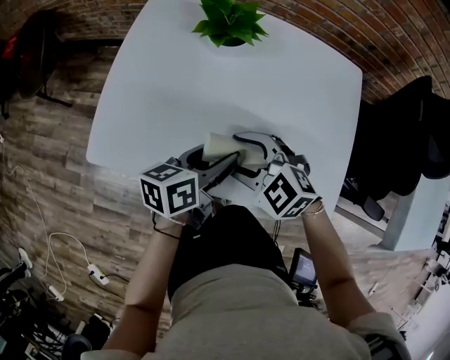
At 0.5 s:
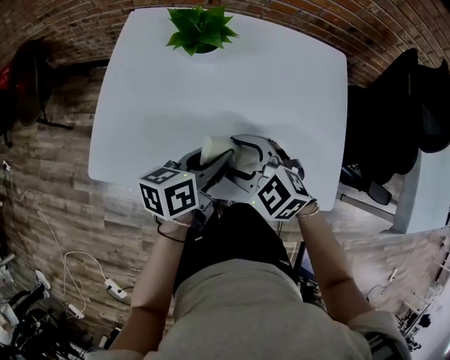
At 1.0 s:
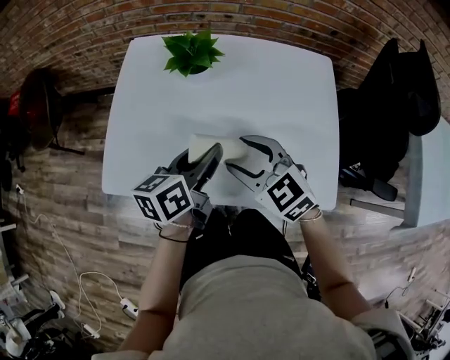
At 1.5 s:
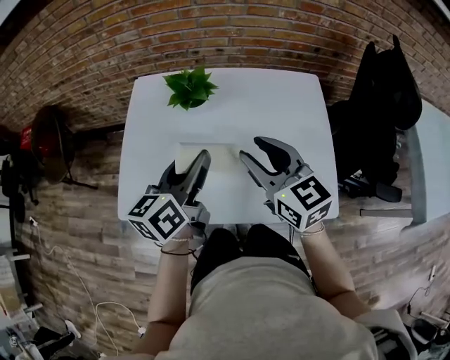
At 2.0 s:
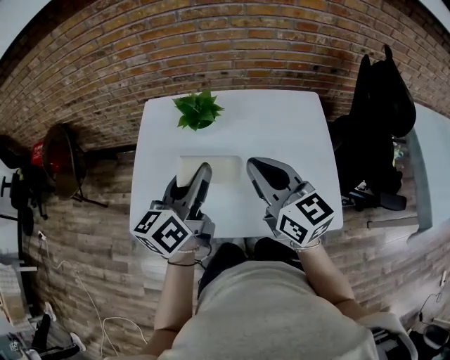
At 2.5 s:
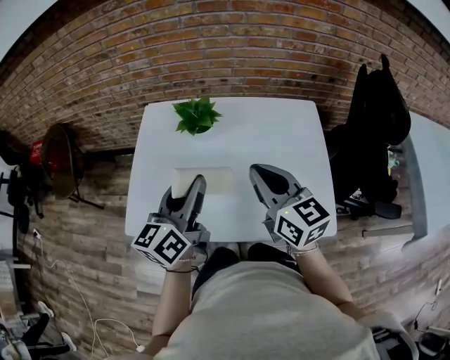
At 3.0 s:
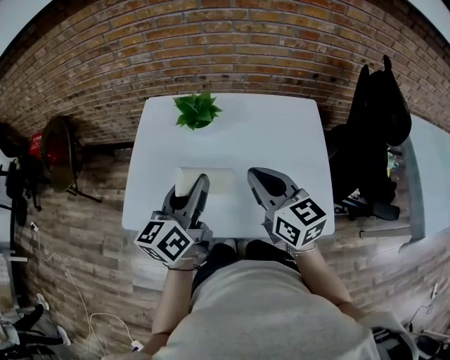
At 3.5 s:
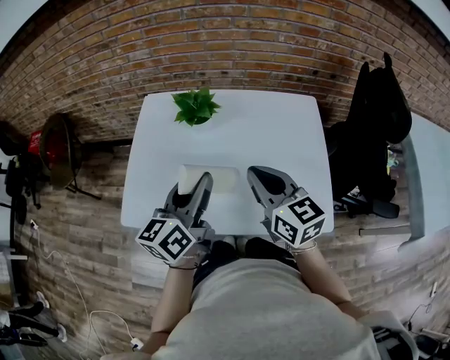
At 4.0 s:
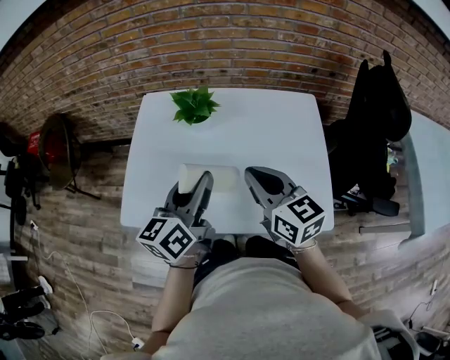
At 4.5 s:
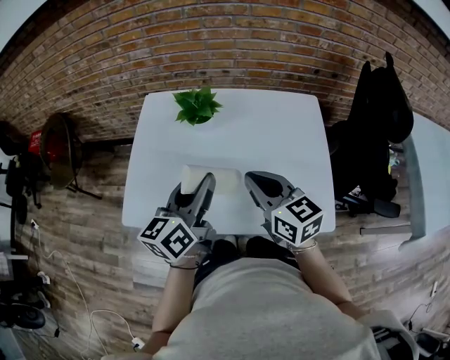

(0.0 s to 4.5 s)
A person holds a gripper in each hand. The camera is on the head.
0.0 s - 2.0 s: Both grippers travel together upward, some 20 cm. The left gripper rotates approximately 30 degrees, and closes up. The right gripper tilts its fingers approximately 40 degrees upward, and closes its fingers.
2.0 s - 4.5 s: The right gripper shifts about 5 cm downward.

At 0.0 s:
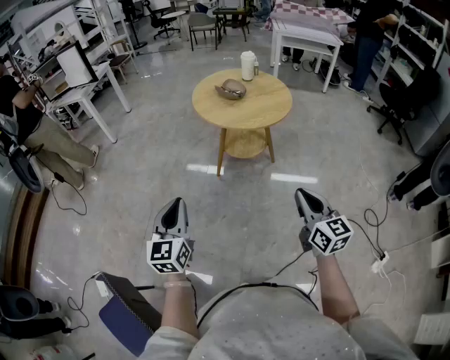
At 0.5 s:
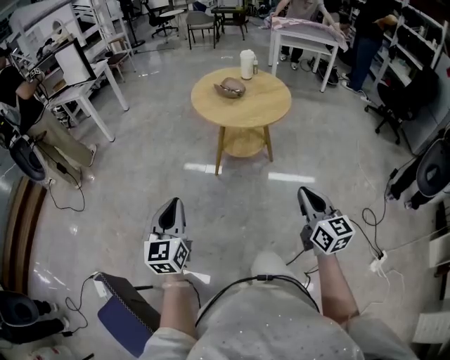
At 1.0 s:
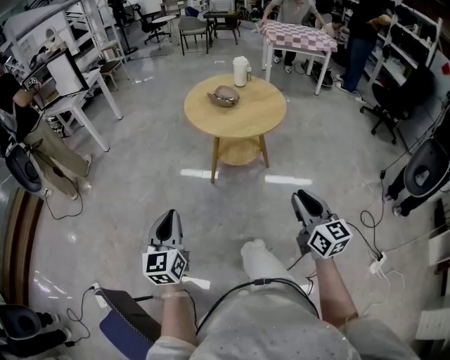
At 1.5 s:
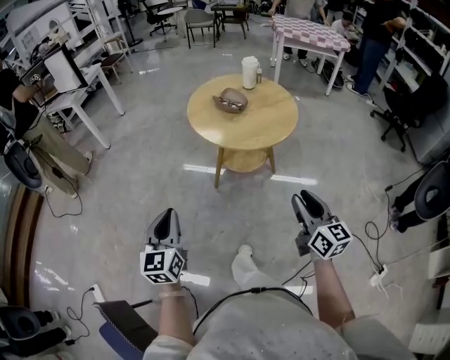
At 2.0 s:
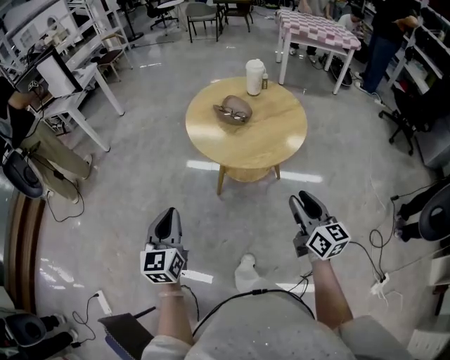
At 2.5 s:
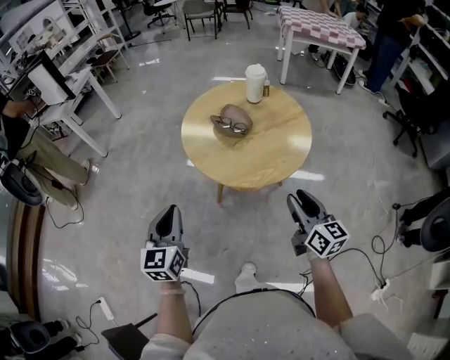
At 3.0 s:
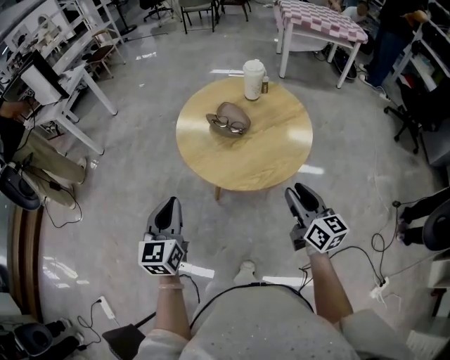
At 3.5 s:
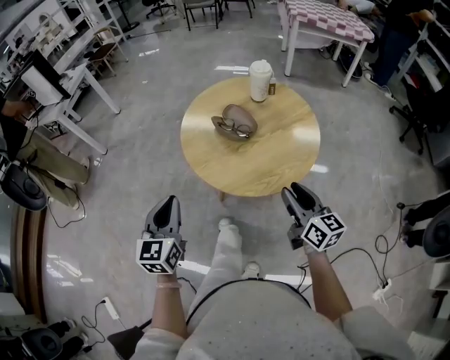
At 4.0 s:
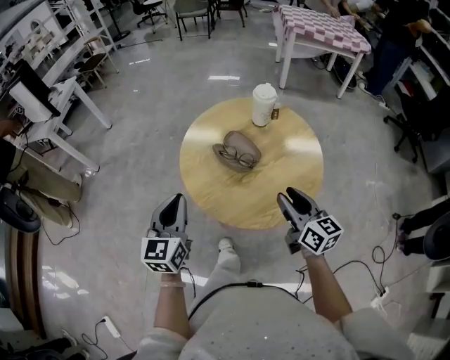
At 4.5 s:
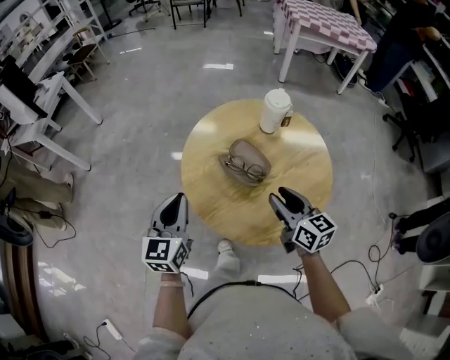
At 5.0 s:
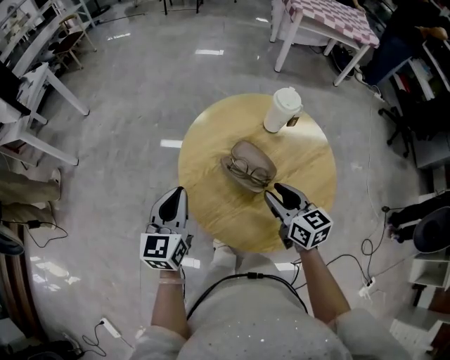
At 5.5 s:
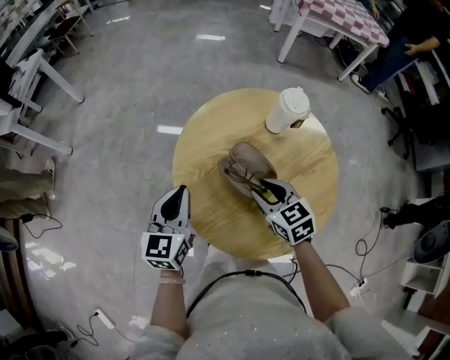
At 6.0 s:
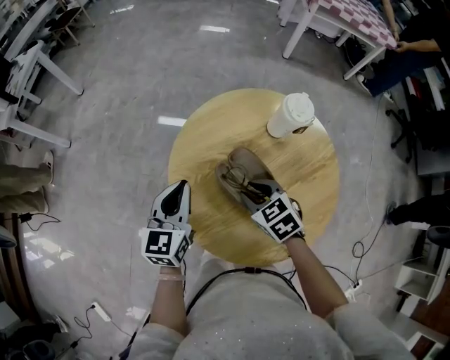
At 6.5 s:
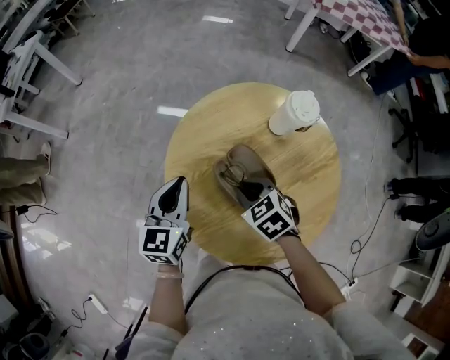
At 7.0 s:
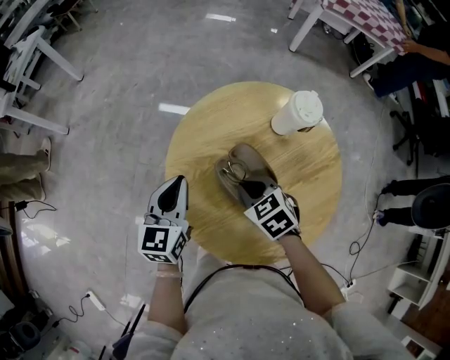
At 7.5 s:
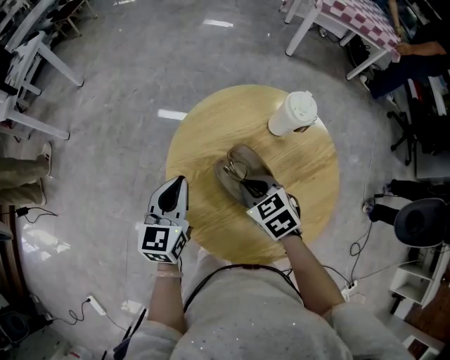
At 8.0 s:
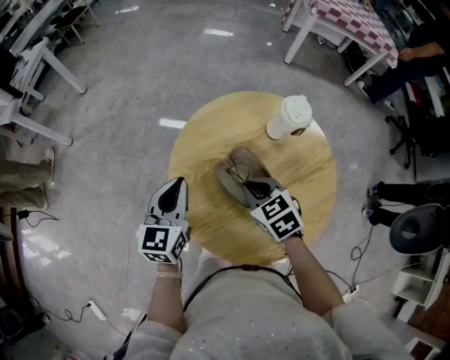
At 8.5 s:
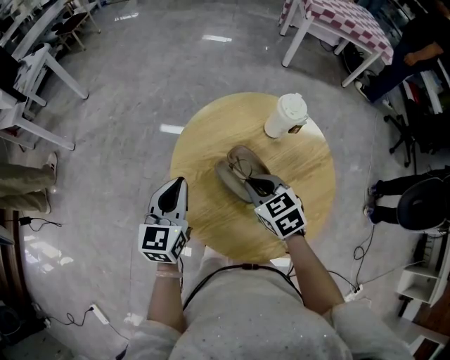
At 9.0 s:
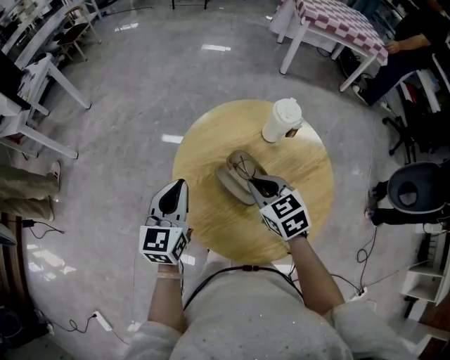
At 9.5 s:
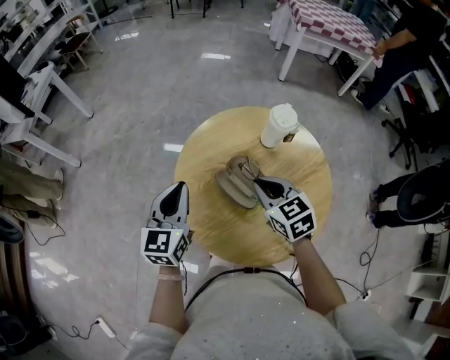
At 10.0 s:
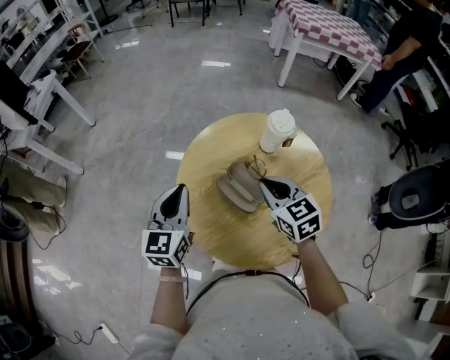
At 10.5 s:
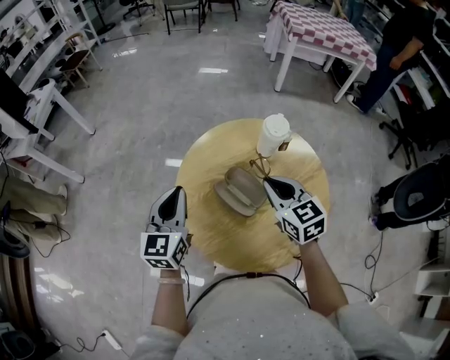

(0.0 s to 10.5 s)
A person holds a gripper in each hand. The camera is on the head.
0.0 s - 2.0 s: The two grippers go about 25 cm forward. The right gripper opens up.
2.0 s - 4.0 s: Both grippers travel together forward, roughly 25 cm.
4.0 s - 6.5 s: The right gripper shifts some 25 cm forward, downward and to the left, tilts its fingers roughly 50 degrees downward, and closes its fingers; the left gripper shifts roughly 20 cm forward and downward.
6.5 s - 8.5 s: The right gripper heads upward, covering roughly 5 cm.
8.5 s - 10.5 s: The right gripper travels upward and to the right by about 10 cm, and rotates about 20 degrees. Meanwhile the left gripper is displaced upward by about 5 cm.

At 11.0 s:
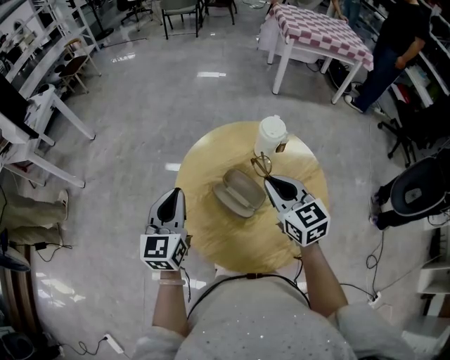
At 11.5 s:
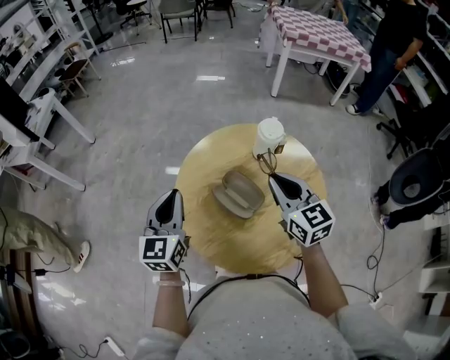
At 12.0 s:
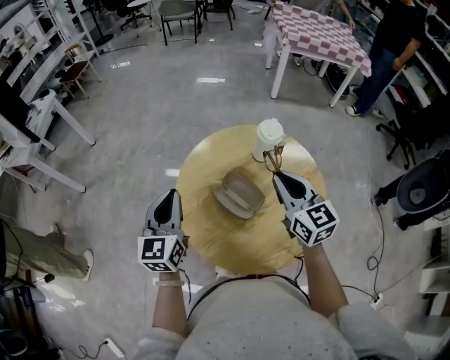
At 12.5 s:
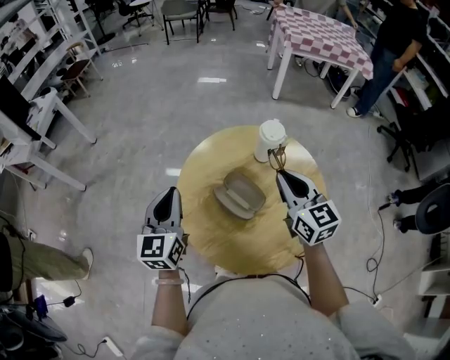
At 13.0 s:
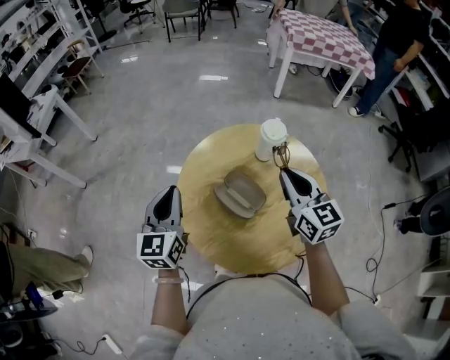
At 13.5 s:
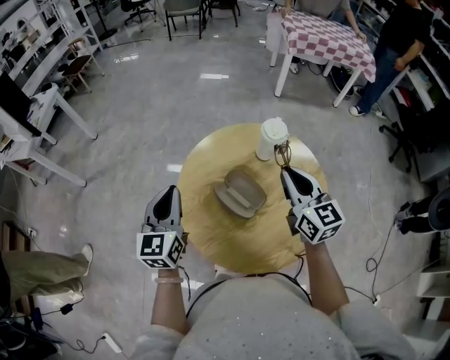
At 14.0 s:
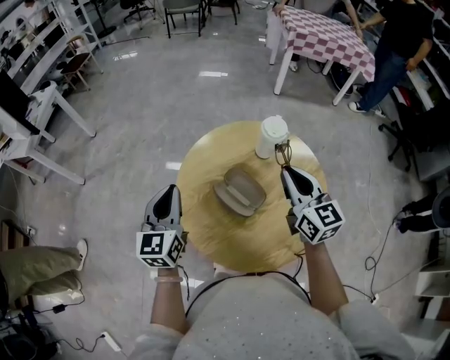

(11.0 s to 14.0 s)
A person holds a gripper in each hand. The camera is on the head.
11.0 s - 12.5 s: The grippers stay close to where they were, moving slightly.
12.5 s - 14.0 s: The grippers move only a little.

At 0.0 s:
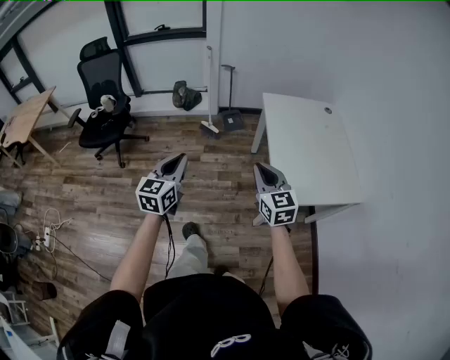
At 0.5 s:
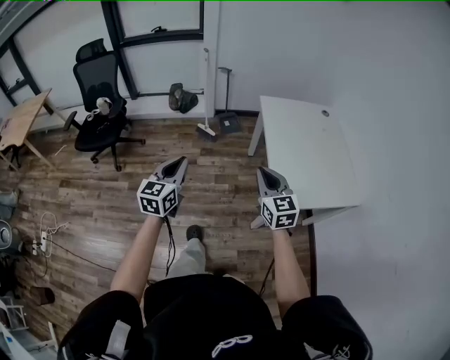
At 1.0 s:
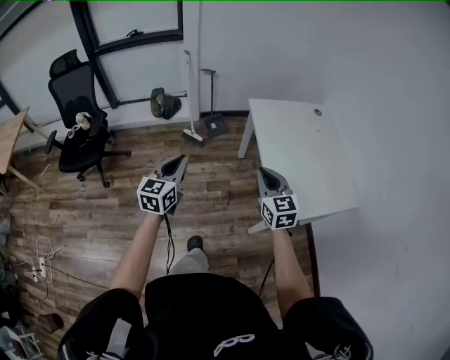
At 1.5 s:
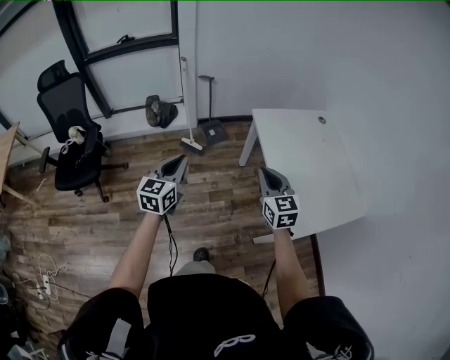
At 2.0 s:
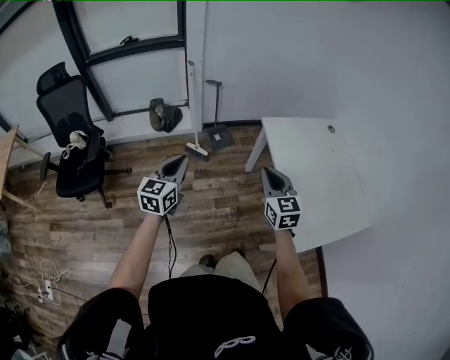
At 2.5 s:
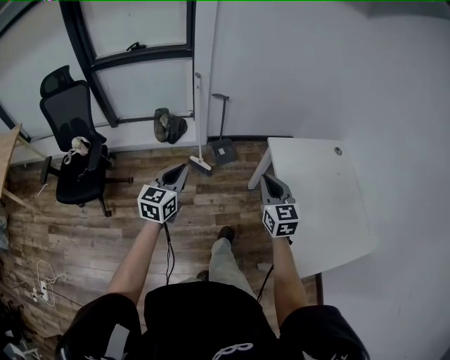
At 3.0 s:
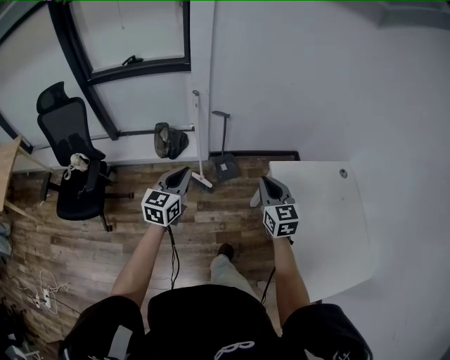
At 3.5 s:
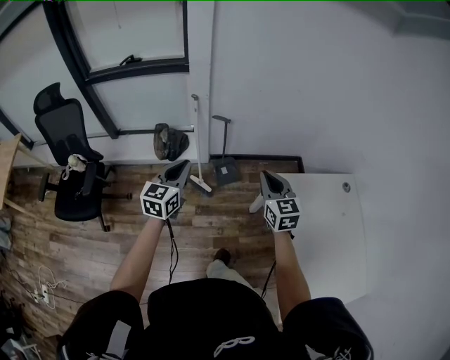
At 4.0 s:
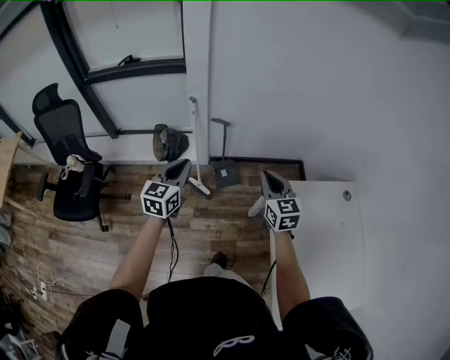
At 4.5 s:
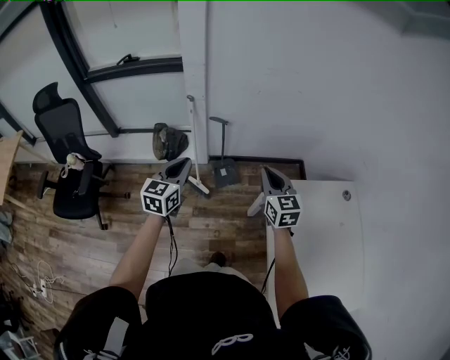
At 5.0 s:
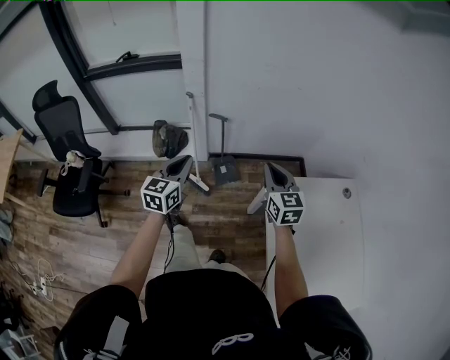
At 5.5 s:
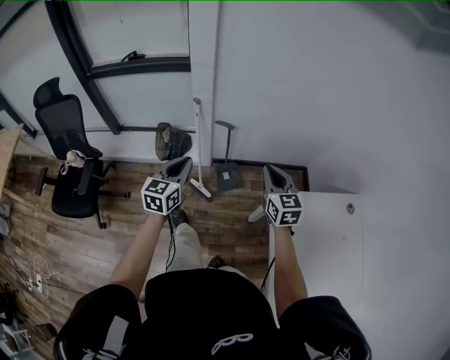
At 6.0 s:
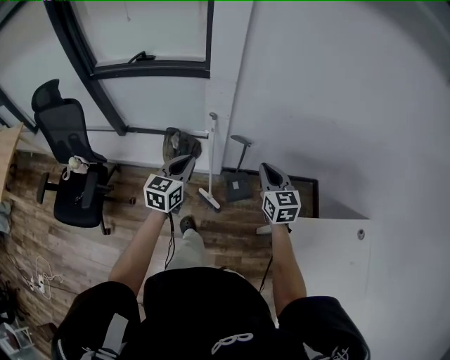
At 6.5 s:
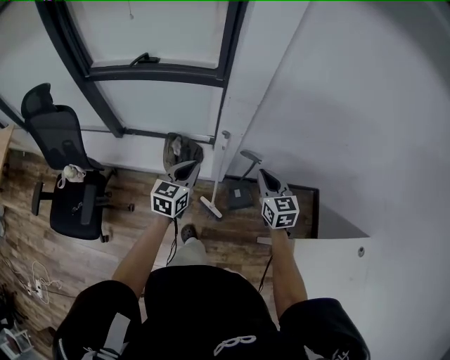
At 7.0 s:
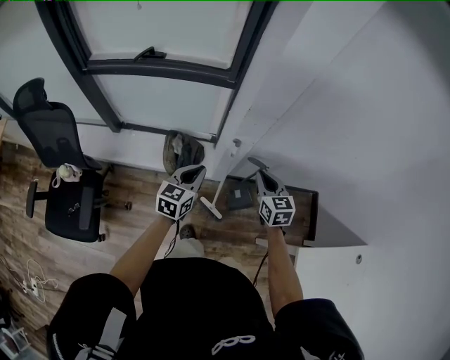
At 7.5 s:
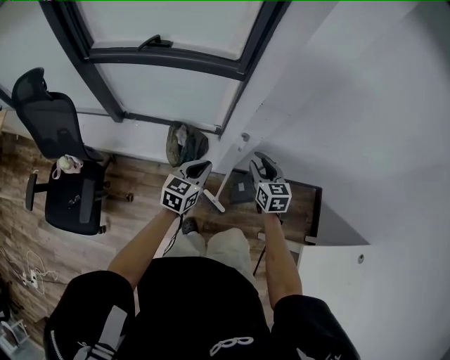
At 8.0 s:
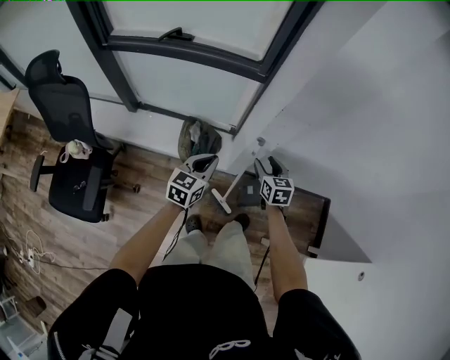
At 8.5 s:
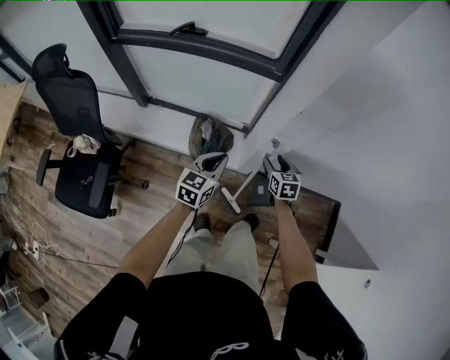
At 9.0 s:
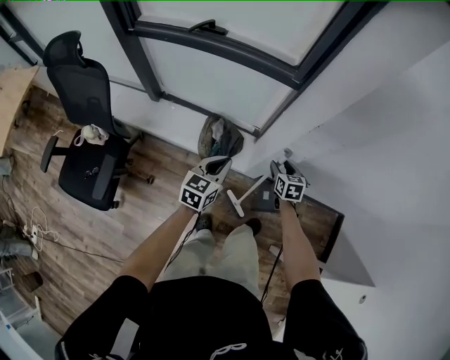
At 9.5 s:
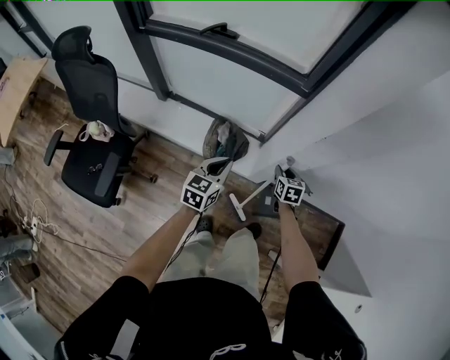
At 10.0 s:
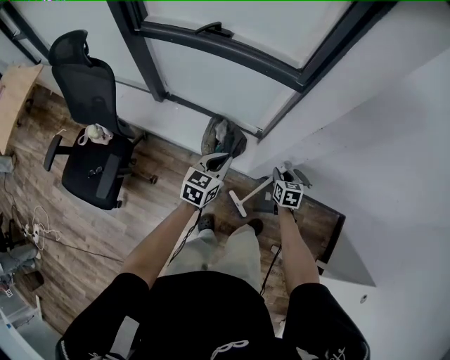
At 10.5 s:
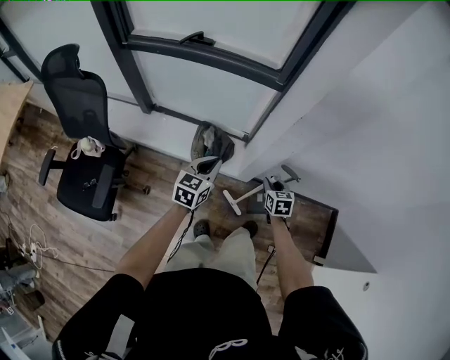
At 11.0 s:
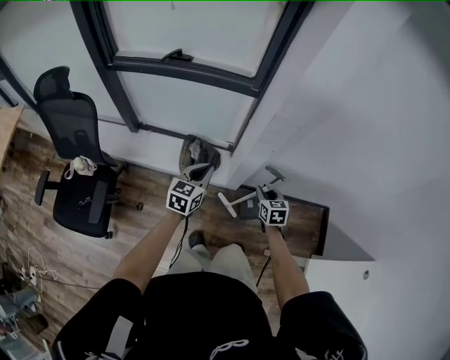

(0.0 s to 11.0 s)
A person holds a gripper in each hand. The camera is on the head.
0.0 s - 2.0 s: Both grippers travel together forward, roughly 30 cm.
2.0 s - 3.5 s: The two grippers go about 30 cm forward.
3.5 s - 5.5 s: The grippers both shift forward by some 10 cm.
5.5 s - 7.5 s: The grippers both shift forward, to the left and downward by roughly 40 cm. The right gripper opens up.
7.5 s - 9.0 s: The right gripper moves downward and forward, roughly 20 cm, while the left gripper goes approximately 10 cm to the left and downward.
9.0 s - 11.0 s: The right gripper shifts roughly 15 cm backward and upward, and closes; the left gripper heads upward, covering some 5 cm.
